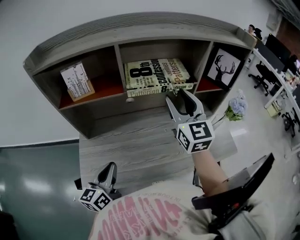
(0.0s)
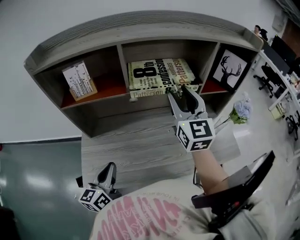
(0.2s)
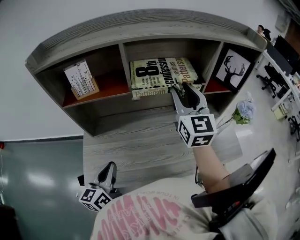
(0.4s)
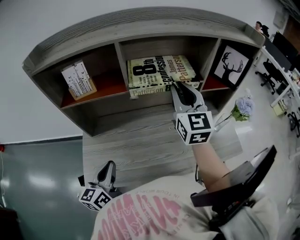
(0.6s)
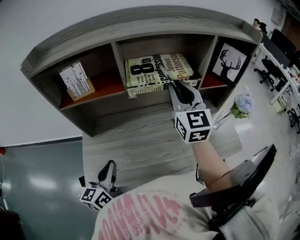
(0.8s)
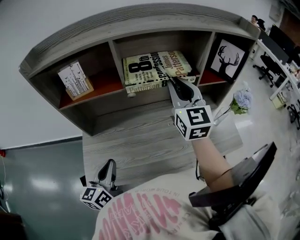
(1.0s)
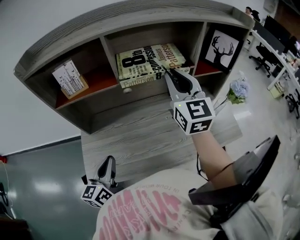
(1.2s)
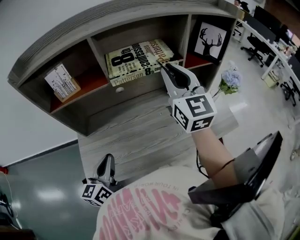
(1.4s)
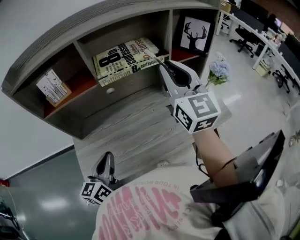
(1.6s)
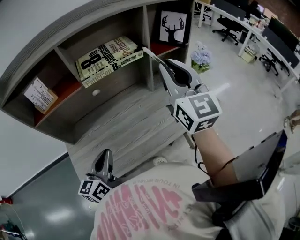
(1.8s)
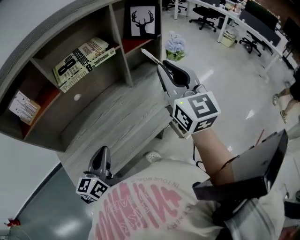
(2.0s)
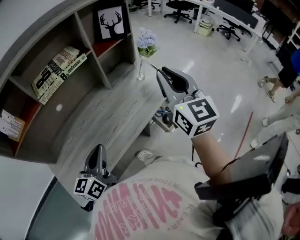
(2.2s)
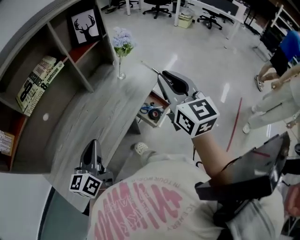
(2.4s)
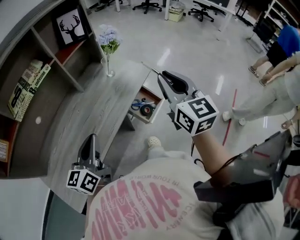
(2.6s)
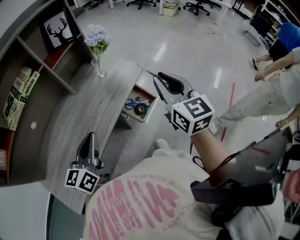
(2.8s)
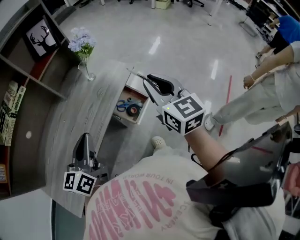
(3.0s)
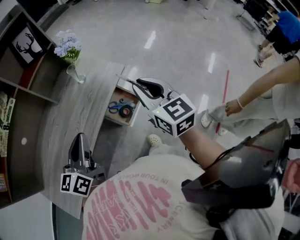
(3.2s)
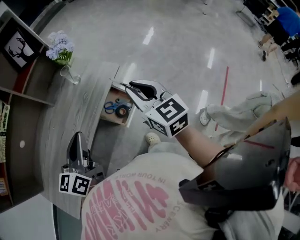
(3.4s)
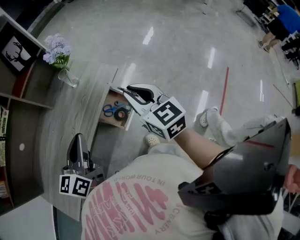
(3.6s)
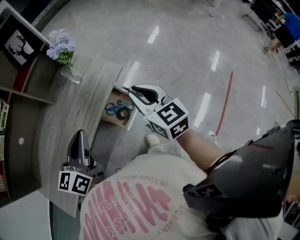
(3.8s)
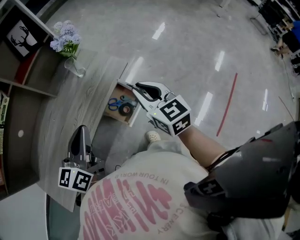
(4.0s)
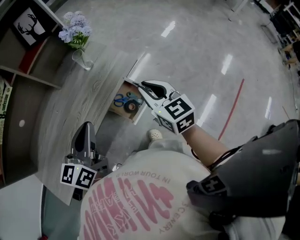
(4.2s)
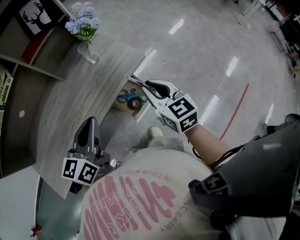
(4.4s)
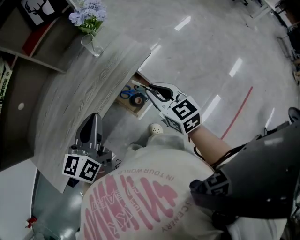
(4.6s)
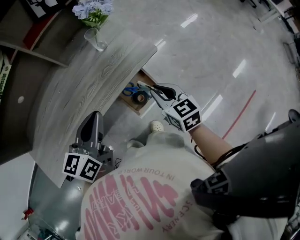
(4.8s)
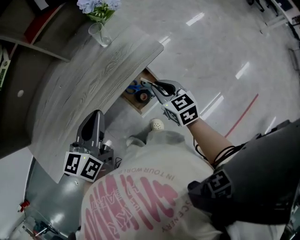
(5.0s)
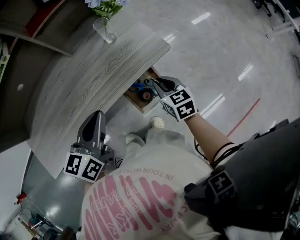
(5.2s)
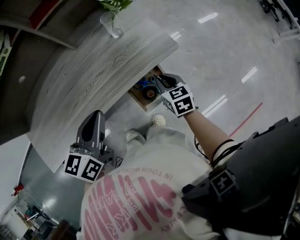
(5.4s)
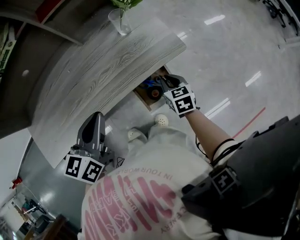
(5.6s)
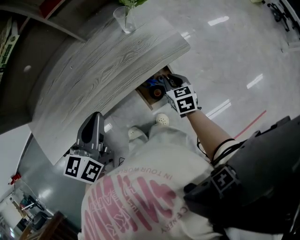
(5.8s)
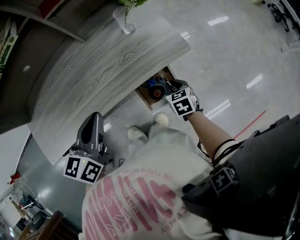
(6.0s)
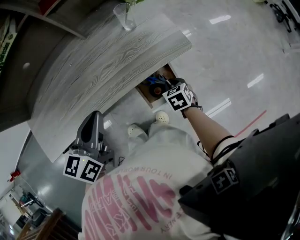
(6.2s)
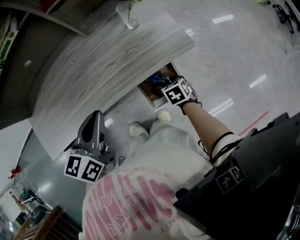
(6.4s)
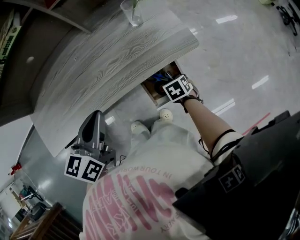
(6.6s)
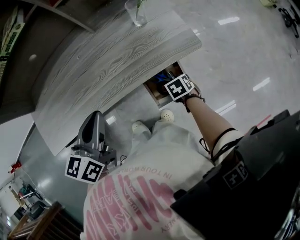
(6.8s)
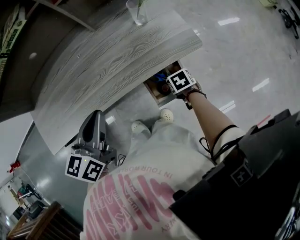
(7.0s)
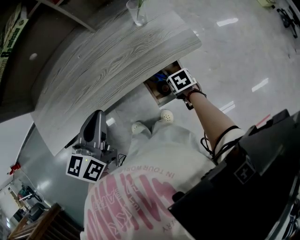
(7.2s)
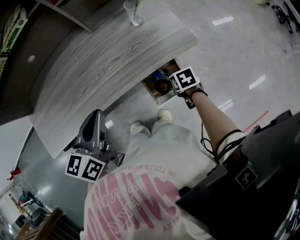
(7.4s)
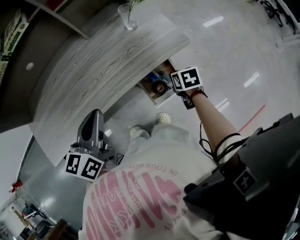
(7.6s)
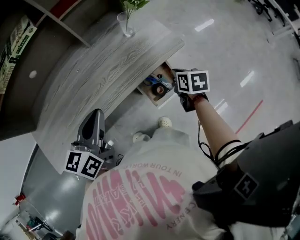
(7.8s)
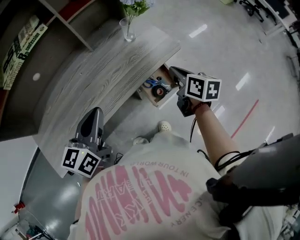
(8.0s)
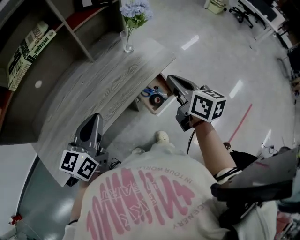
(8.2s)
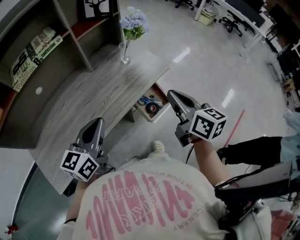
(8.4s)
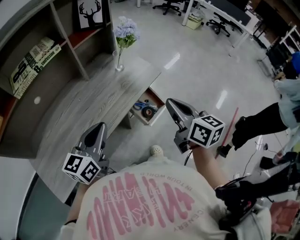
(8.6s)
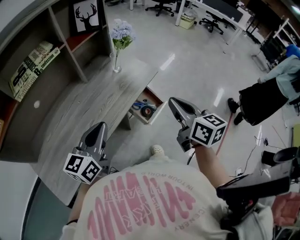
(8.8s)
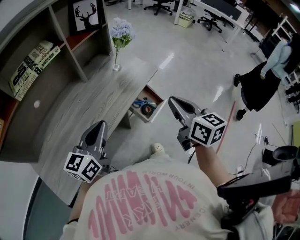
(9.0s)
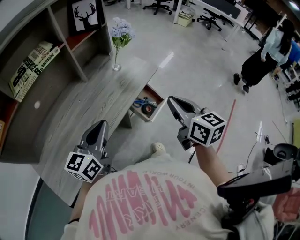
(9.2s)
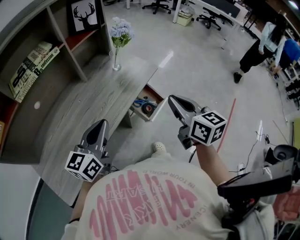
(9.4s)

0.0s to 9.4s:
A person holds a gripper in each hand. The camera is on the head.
0.0s to 1.6s: The right gripper moves upward and to the right, approximately 5 cm, and closes.
1.6s to 3.2s: The left gripper changes place by about 35 cm, and swivels some 40 degrees, while the right gripper changes place by about 50 cm, and rotates about 40 degrees.
3.2s to 4.8s: The left gripper moves downward and forward, approximately 5 cm. Meanwhile the right gripper moves downward, approximately 20 cm, and turns by approximately 30 degrees.
4.8s to 6.2s: The left gripper travels to the left by roughly 5 cm; the right gripper goes approximately 20 cm downward, and angles its fingers downward, by roughly 30 degrees.
6.2s to 7.8s: The left gripper changes place by about 5 cm, while the right gripper shifts about 10 cm upward, and changes its angle by some 30 degrees.
7.8s to 9.4s: The left gripper travels upward by roughly 5 cm, and changes its angle by about 30 degrees. The right gripper travels upward and backward by approximately 30 cm, and tips its fingers upward by approximately 40 degrees.

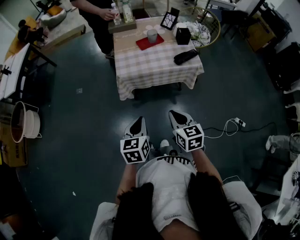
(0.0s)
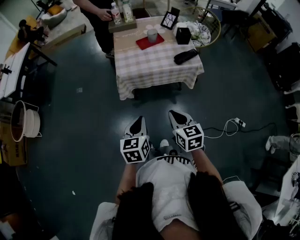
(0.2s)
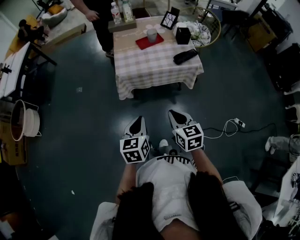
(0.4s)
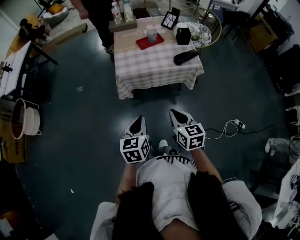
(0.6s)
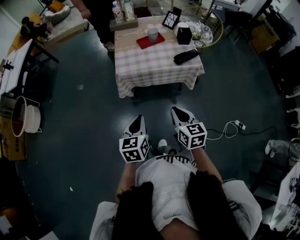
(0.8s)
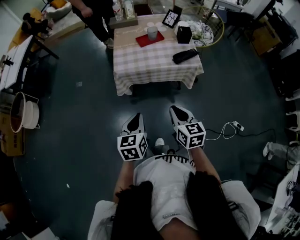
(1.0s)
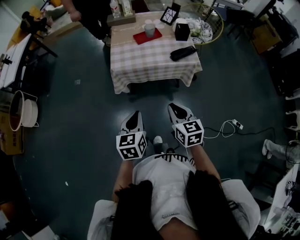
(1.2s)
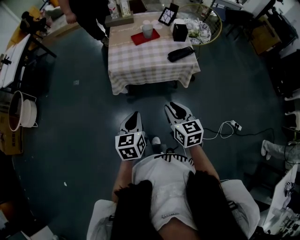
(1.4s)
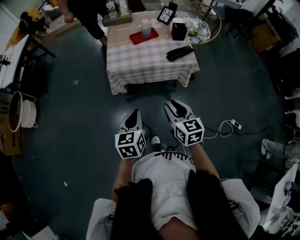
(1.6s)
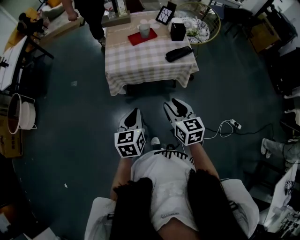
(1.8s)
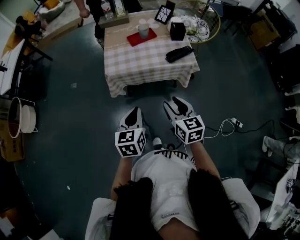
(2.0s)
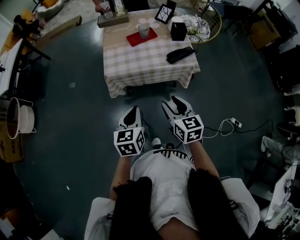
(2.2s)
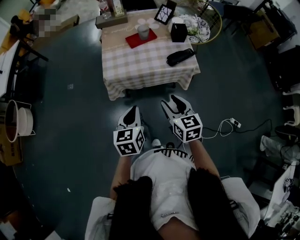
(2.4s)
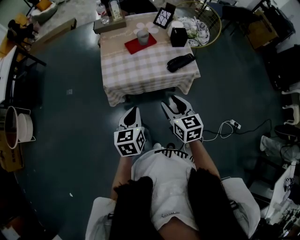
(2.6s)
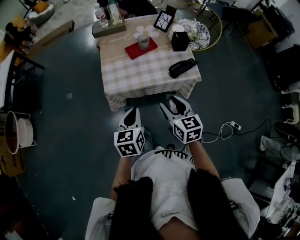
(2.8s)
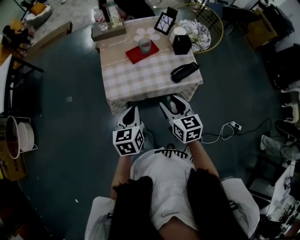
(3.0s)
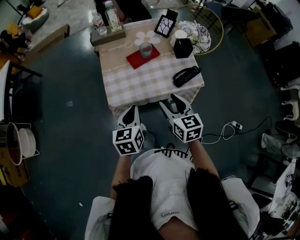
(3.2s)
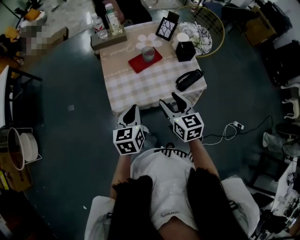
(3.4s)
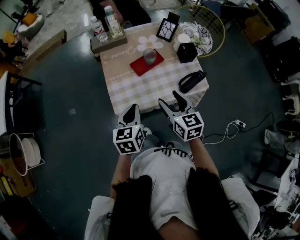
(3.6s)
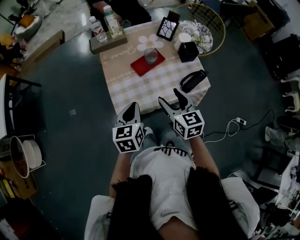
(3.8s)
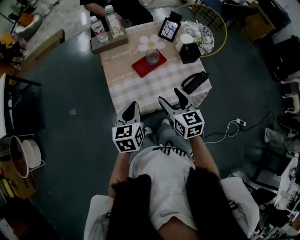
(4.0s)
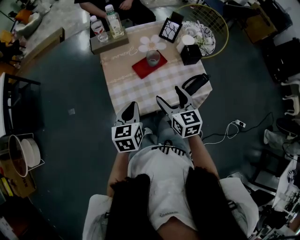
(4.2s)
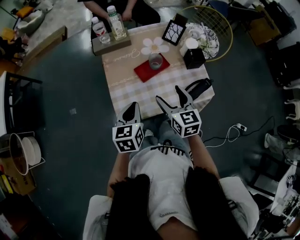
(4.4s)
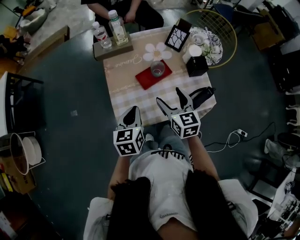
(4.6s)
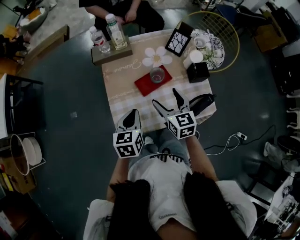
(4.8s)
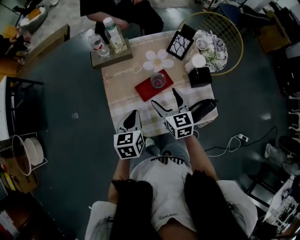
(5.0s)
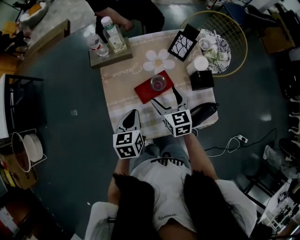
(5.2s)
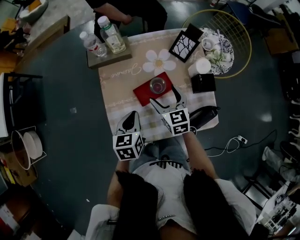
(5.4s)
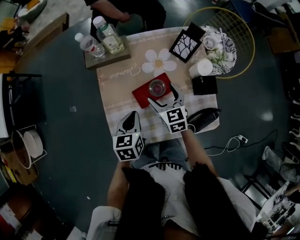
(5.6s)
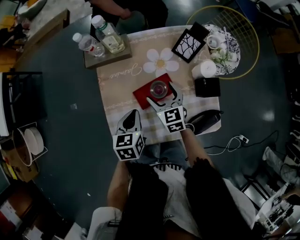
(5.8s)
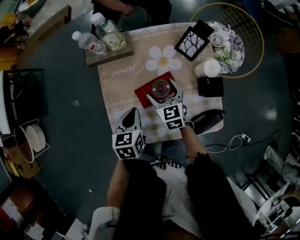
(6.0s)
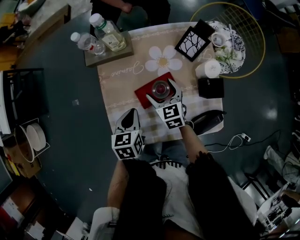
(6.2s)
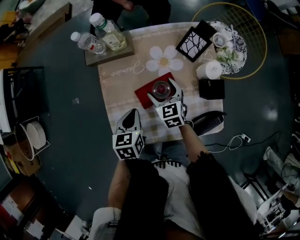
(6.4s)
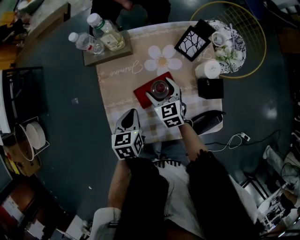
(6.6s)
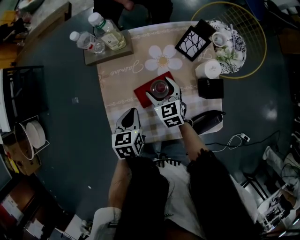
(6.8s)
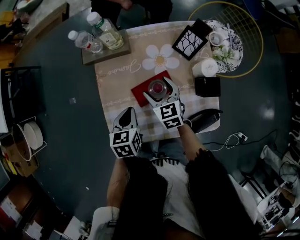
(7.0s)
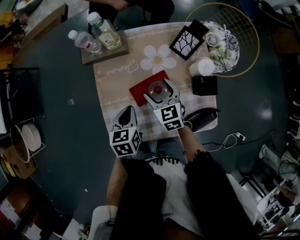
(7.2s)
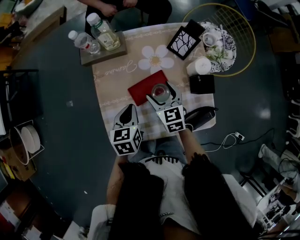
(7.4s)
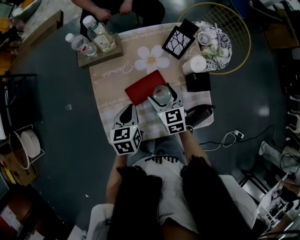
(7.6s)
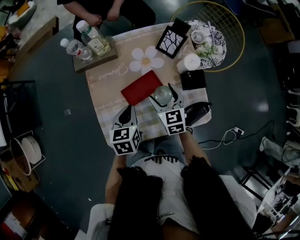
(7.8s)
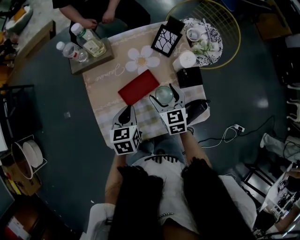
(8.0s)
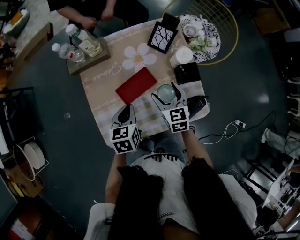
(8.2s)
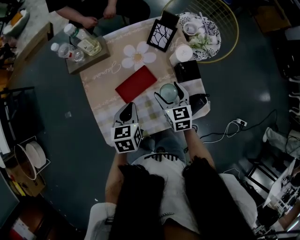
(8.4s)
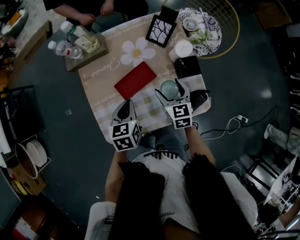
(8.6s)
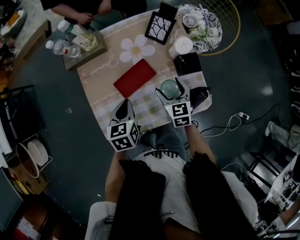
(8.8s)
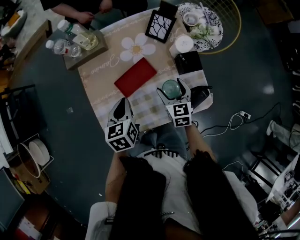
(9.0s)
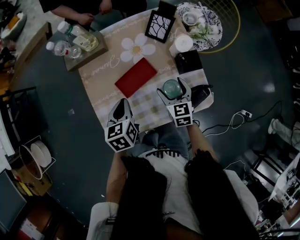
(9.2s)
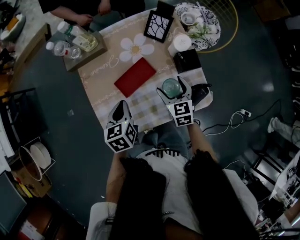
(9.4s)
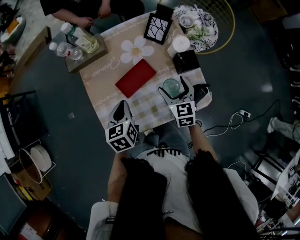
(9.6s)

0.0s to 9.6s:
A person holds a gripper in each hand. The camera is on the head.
0.0s to 1.6s: The two grippers go approximately 5 cm to the right.
1.6s to 3.2s: Both grippers travel together forward, roughly 25 cm.
3.2s to 4.8s: Both grippers travel together forward, roughly 20 cm. The right gripper opens.
4.8s to 6.4s: The right gripper is displaced forward and downward by approximately 20 cm. The left gripper shifts some 10 cm forward and downward.
6.4s to 8.0s: The left gripper is displaced to the right by approximately 5 cm. Meanwhile the right gripper travels to the right and backward by approximately 10 cm.
8.0s to 9.6s: The right gripper goes roughly 5 cm to the right.

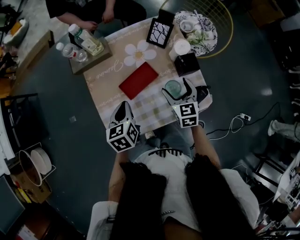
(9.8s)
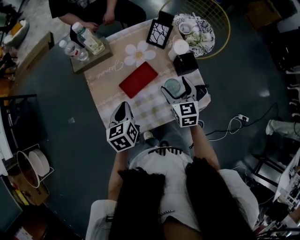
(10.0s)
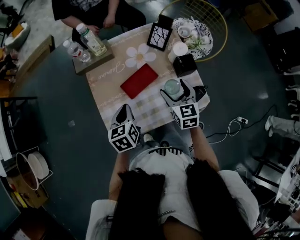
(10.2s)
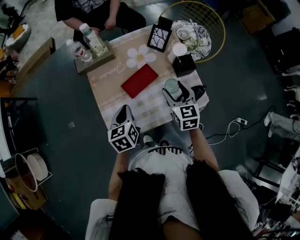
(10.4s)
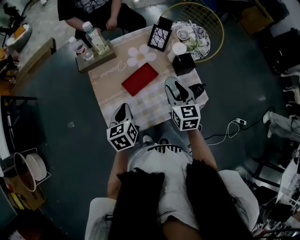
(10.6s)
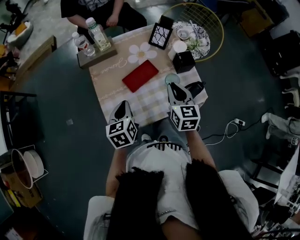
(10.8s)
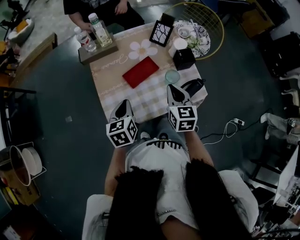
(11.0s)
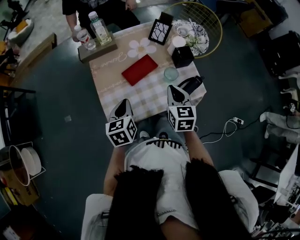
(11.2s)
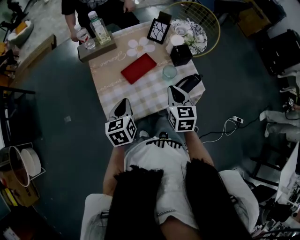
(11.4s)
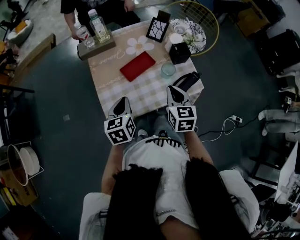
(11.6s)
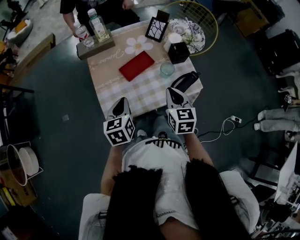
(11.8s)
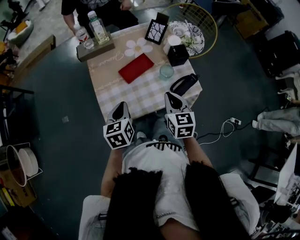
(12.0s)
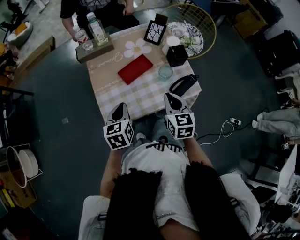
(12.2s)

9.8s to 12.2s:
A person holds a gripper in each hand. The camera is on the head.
9.8s to 11.0s: The right gripper moves backward and upward, approximately 10 cm, and closes up. The left gripper is displaced backward by approximately 10 cm.
11.0s to 12.2s: The two grippers go approximately 5 cm backward.

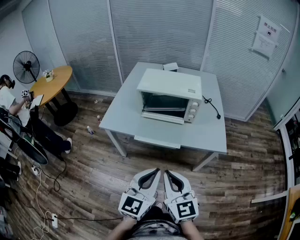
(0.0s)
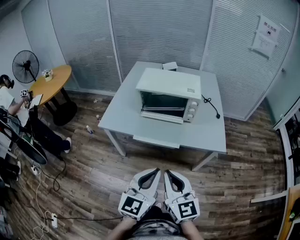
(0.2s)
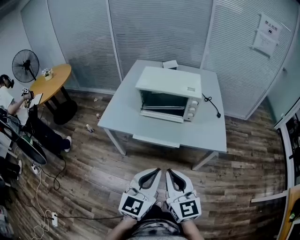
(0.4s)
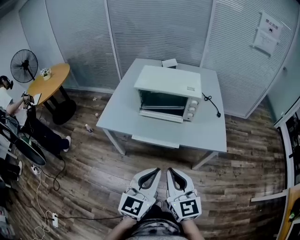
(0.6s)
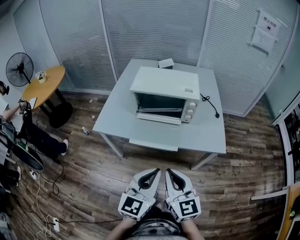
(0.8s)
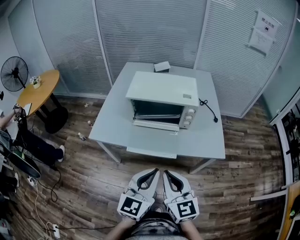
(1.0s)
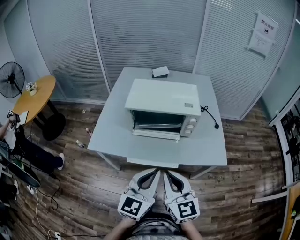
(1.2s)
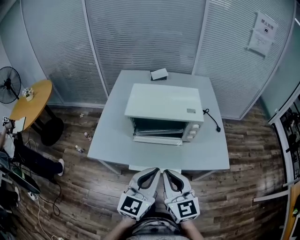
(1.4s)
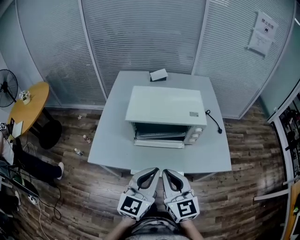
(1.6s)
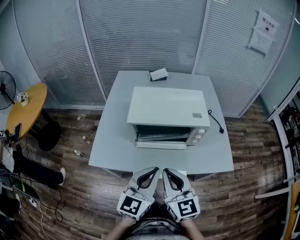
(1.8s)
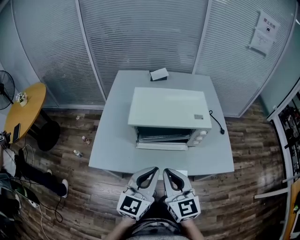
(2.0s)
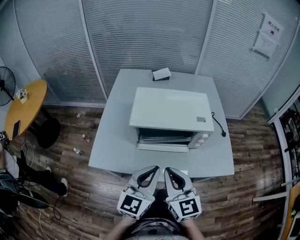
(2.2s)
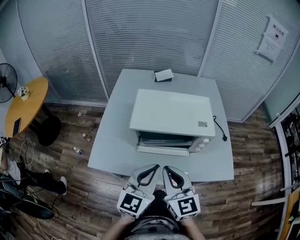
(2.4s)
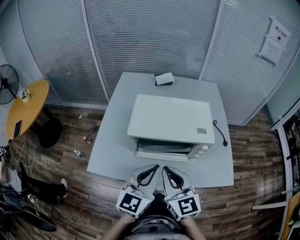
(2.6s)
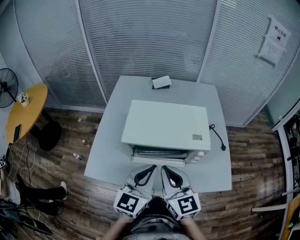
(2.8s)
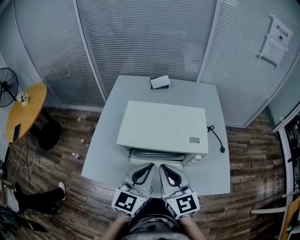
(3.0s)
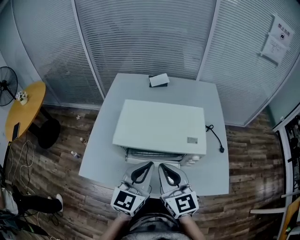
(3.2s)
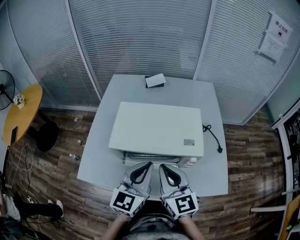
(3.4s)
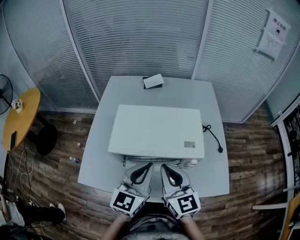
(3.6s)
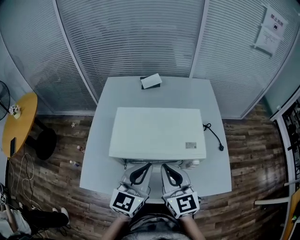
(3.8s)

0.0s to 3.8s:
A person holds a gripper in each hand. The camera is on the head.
0.0s to 1.2s: The grippers both shift forward by some 15 cm.
1.2s to 2.6s: The two grippers go approximately 20 cm forward.
2.6s to 3.8s: The left gripper goes about 10 cm forward. Meanwhile the right gripper heads forward and to the right, covering some 10 cm.
